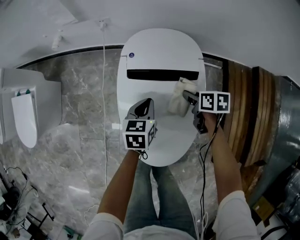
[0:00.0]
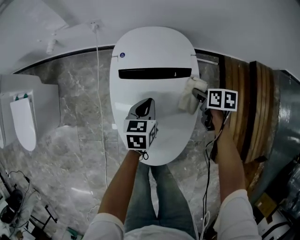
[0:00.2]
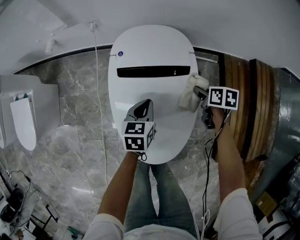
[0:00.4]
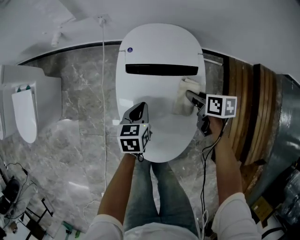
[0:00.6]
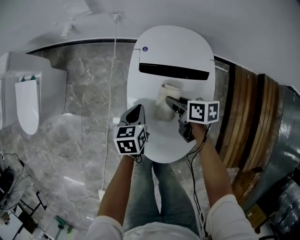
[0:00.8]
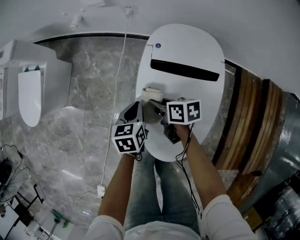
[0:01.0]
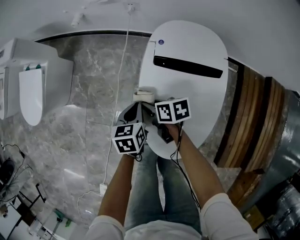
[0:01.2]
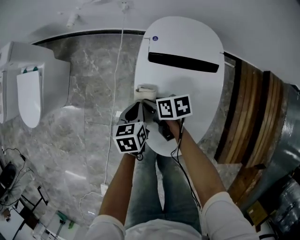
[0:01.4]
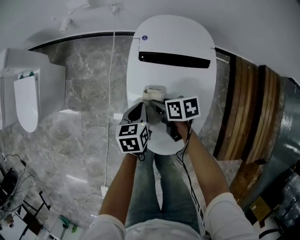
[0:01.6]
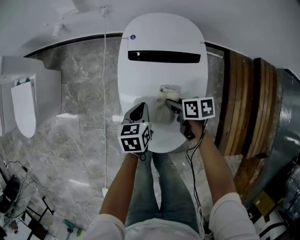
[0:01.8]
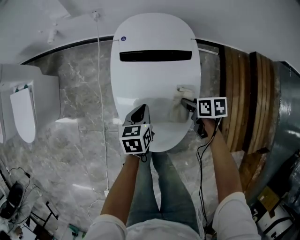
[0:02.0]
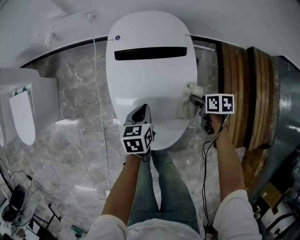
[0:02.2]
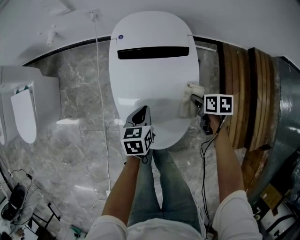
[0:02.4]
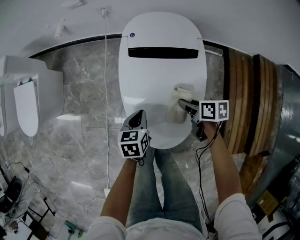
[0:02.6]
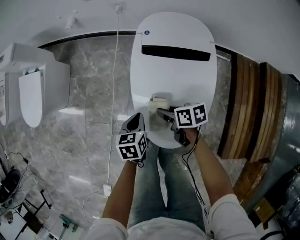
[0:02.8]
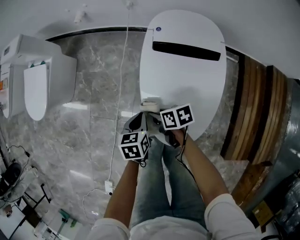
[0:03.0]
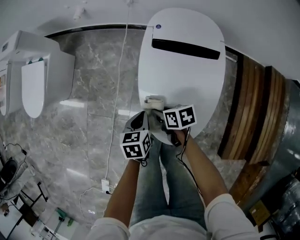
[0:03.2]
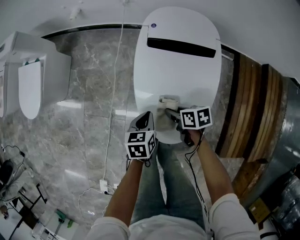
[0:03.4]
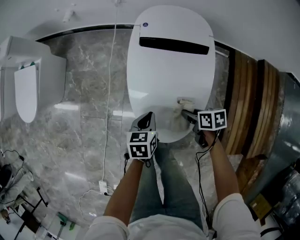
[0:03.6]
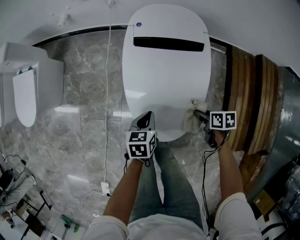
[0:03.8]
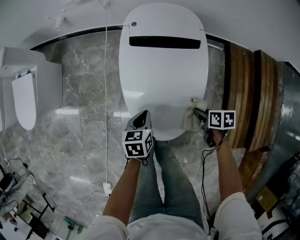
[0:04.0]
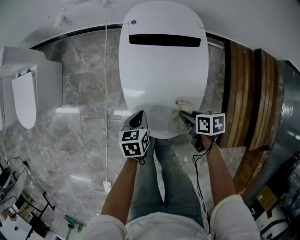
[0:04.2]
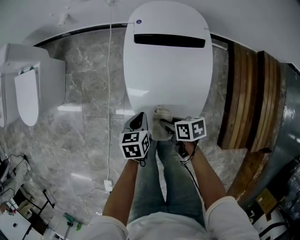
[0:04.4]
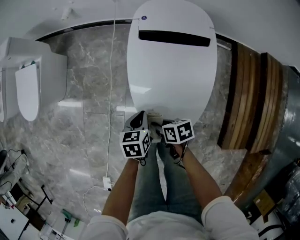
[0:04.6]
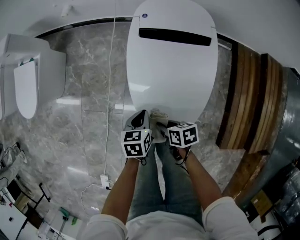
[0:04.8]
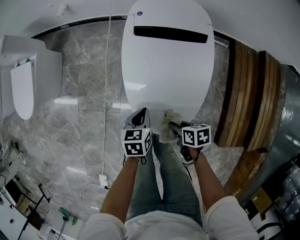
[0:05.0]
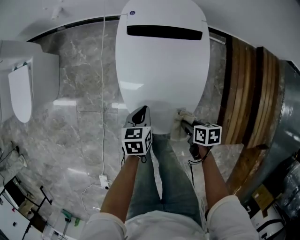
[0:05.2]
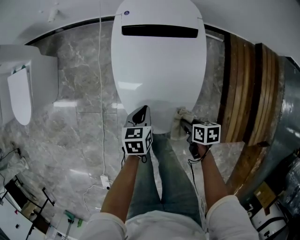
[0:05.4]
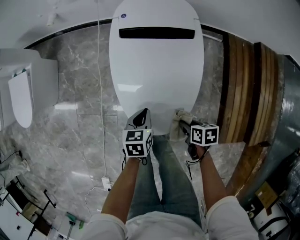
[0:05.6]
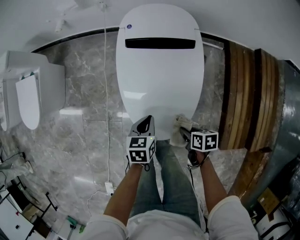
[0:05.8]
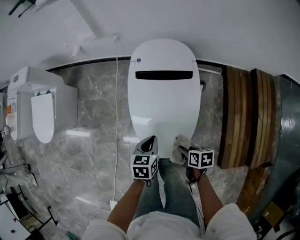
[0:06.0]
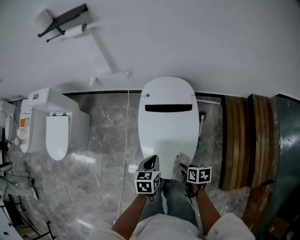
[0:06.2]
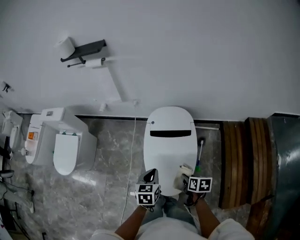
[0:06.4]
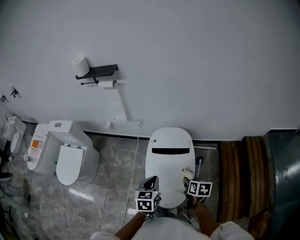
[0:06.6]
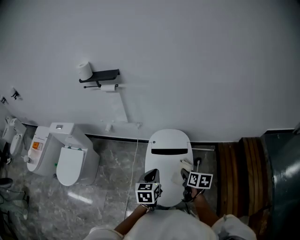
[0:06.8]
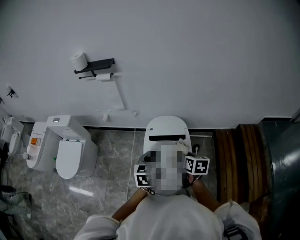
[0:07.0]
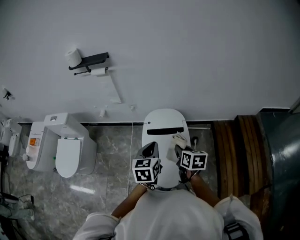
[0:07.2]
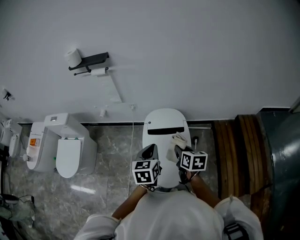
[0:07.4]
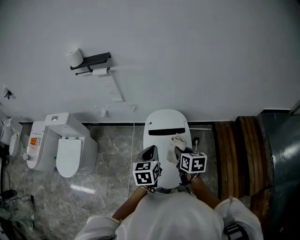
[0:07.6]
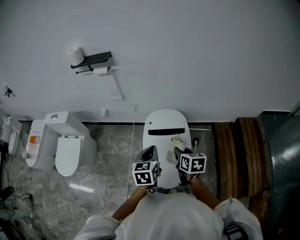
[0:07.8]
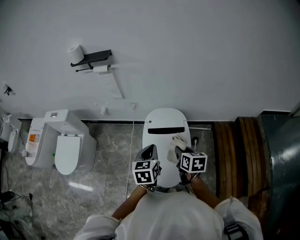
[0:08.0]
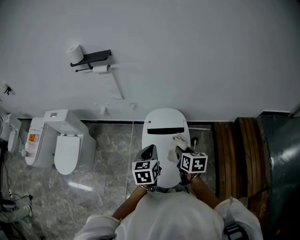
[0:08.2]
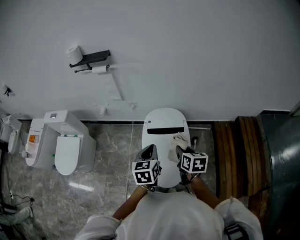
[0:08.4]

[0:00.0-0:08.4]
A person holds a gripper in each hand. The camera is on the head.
0:00.0 to 0:01.4: The left gripper shifts by about 15 cm; the right gripper shifts by some 25 cm, and rotates approximately 20 degrees.
0:01.4 to 0:02.8: Both grippers move backward, roughly 10 cm. The right gripper reaches roughly 30 cm to the right, then returns. Meanwhile the left gripper moves about 10 cm to the right and comes back.
0:02.8 to 0:04.2: The right gripper goes left and right, about 25 cm each way, reversing 2 times. Meanwhile the left gripper moves about 5 cm.
0:04.2 to 0:05.6: The right gripper moves backward, about 10 cm, and travels to the left and back again, approximately 15 cm each way. The left gripper changes place by about 5 cm.
0:05.6 to 0:07.0: The left gripper heads upward, covering about 40 cm, and changes its angle by approximately 30 degrees. Meanwhile the right gripper is displaced upward and forward by approximately 40 cm, and turns by roughly 40 degrees.
0:07.0 to 0:08.4: The grippers make only small movements.

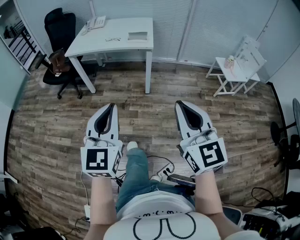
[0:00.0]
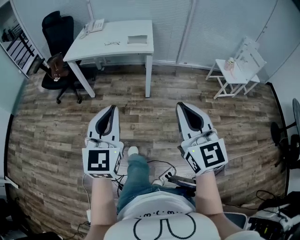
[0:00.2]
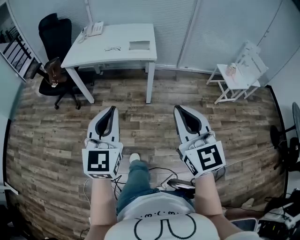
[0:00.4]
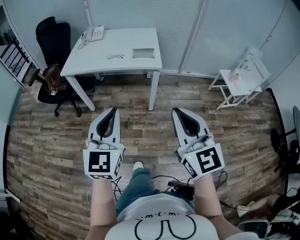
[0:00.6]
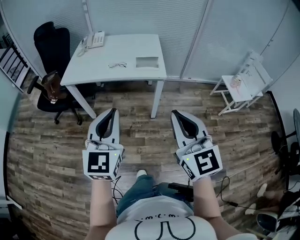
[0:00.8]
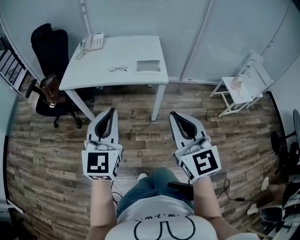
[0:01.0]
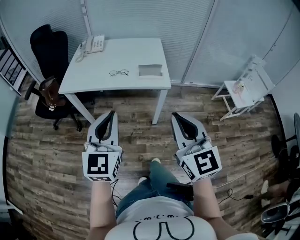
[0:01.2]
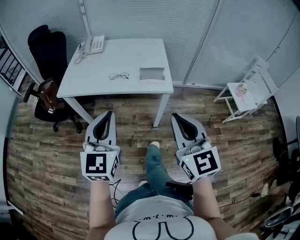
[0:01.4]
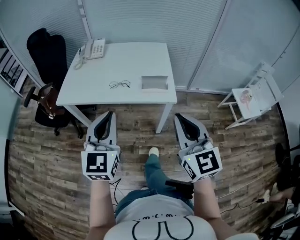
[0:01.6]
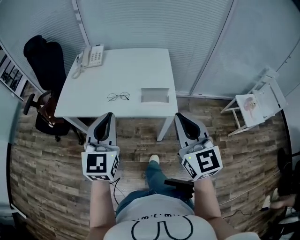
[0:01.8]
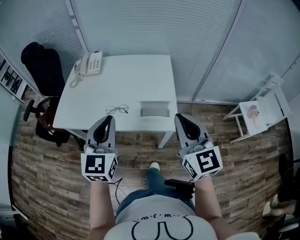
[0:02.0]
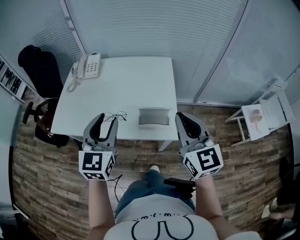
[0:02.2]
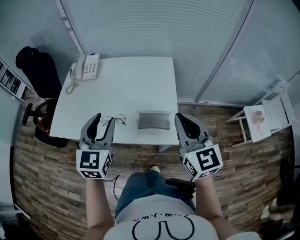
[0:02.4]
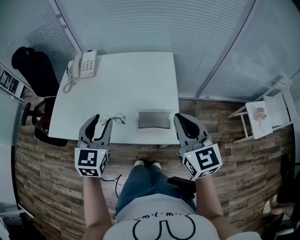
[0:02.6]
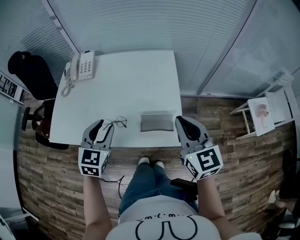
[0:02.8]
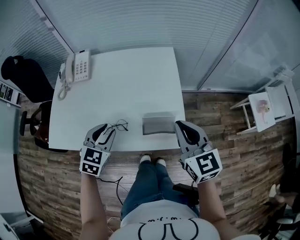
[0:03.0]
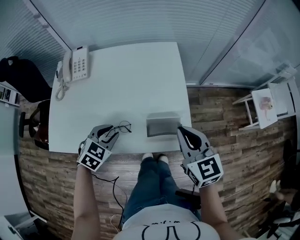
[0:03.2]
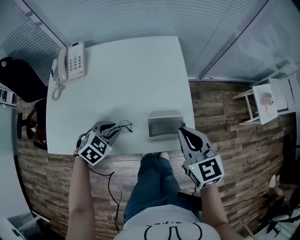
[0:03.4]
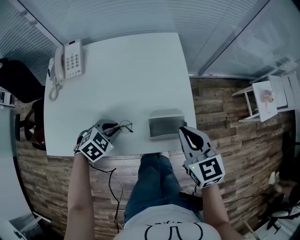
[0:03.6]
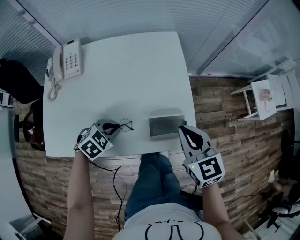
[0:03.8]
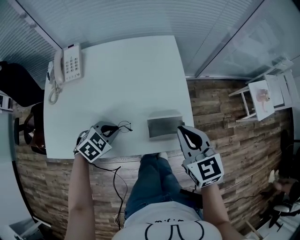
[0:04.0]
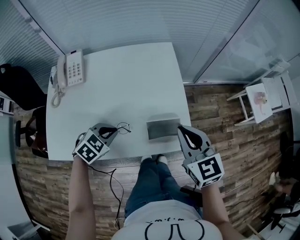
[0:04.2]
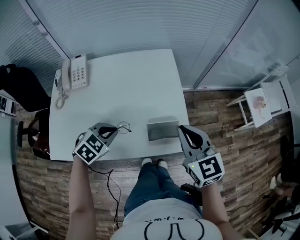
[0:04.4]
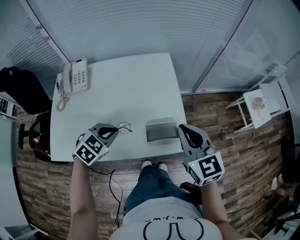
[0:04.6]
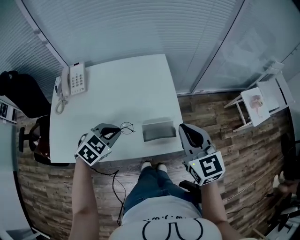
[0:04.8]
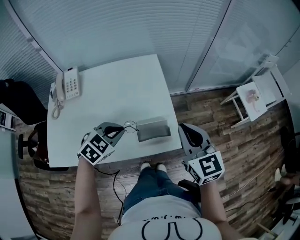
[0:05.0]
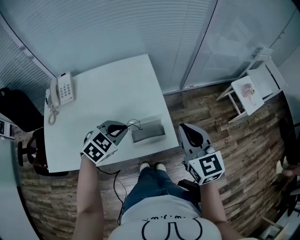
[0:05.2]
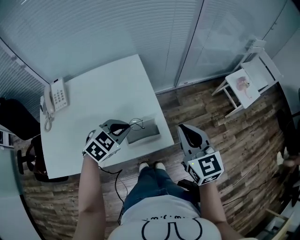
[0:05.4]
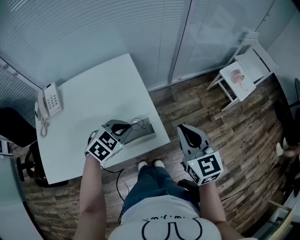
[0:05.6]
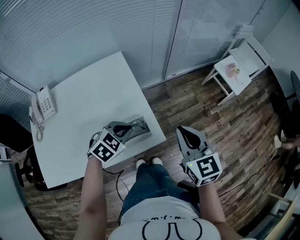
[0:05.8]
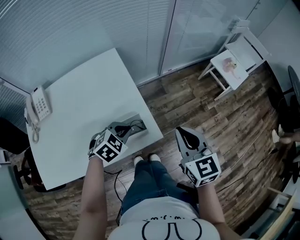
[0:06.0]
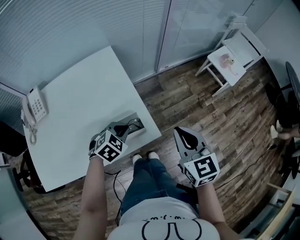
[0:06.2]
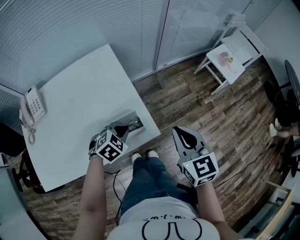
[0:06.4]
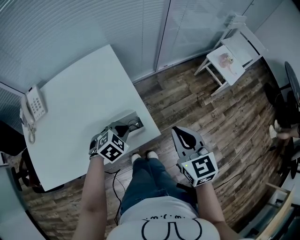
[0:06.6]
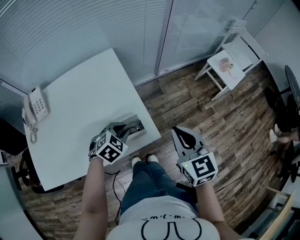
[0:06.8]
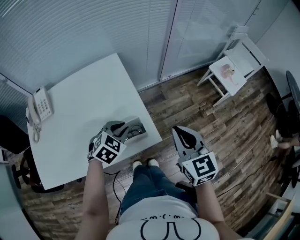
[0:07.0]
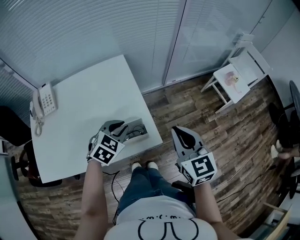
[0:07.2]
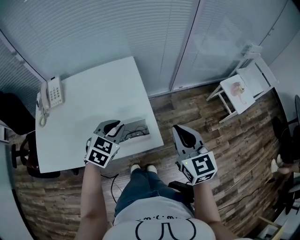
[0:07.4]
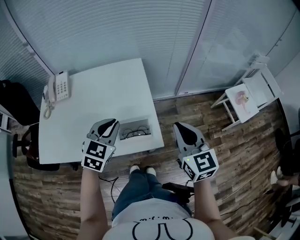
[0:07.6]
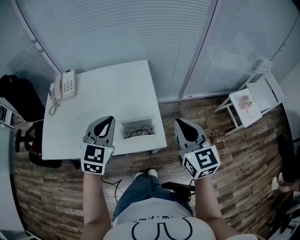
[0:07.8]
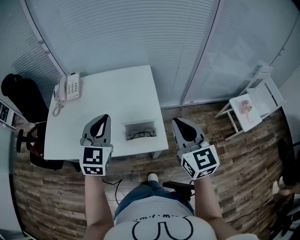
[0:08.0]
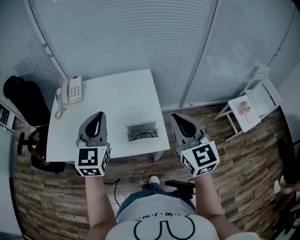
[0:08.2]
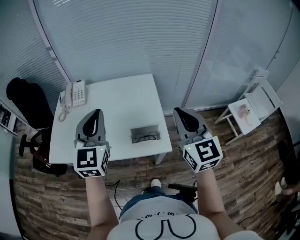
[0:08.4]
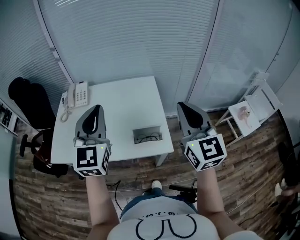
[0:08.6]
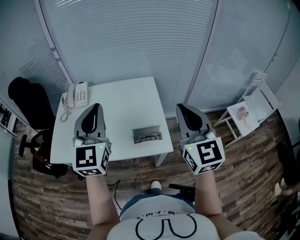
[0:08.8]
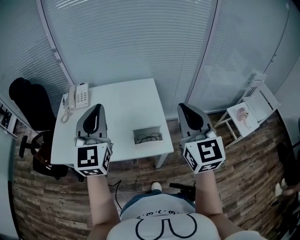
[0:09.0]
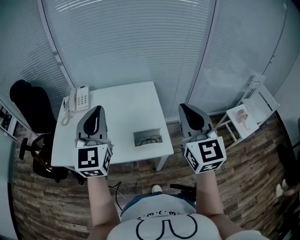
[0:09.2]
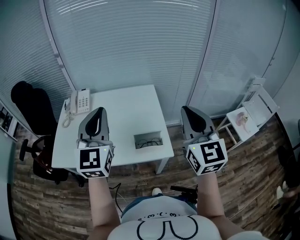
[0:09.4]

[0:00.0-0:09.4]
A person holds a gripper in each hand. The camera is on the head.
0:00.0 to 0:01.6: The pair of grippers is taken forward, approximately 50 cm.
0:01.6 to 0:03.2: The left gripper goes approximately 40 cm forward and downward, tips its fingers downward by some 50 degrees, and opens up, while the right gripper heads forward, covering roughly 30 cm, and changes its angle by about 20 degrees.
0:03.2 to 0:04.8: The two grippers go approximately 5 cm upward. The left gripper closes its fingers.
0:04.8 to 0:06.2: The left gripper goes some 20 cm to the right, downward and forward, while the right gripper is displaced to the right by some 15 cm, and swivels some 20 degrees.
0:06.2 to 0:07.8: The right gripper heads upward, covering about 5 cm, and turns by some 20 degrees. Meanwhile the left gripper goes some 20 cm upward, and tilts its fingers about 40 degrees upward.
0:07.8 to 0:09.4: The left gripper is displaced upward and to the left by roughly 20 cm, and swivels about 30 degrees. Meanwhile the right gripper shifts approximately 15 cm upward.

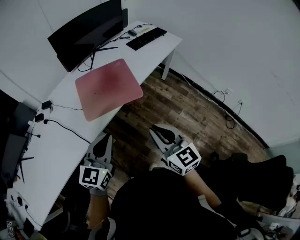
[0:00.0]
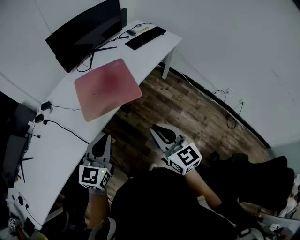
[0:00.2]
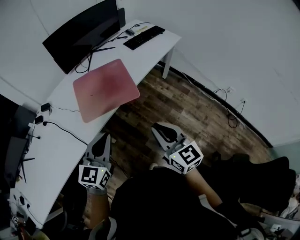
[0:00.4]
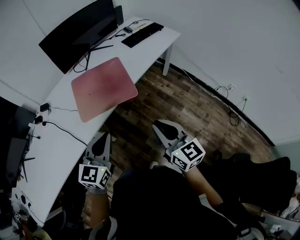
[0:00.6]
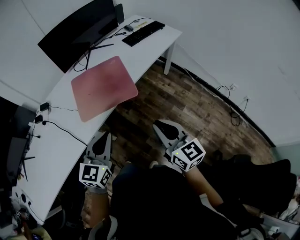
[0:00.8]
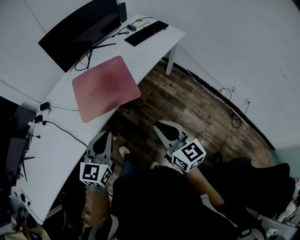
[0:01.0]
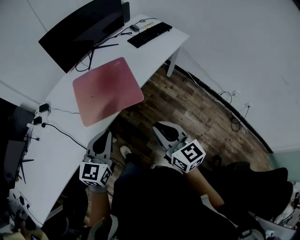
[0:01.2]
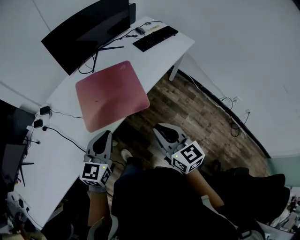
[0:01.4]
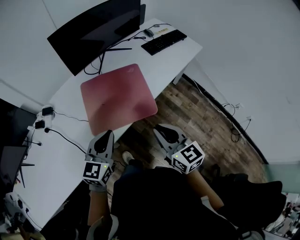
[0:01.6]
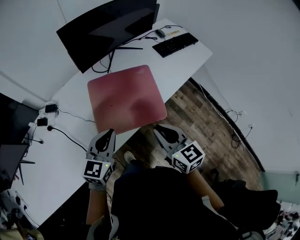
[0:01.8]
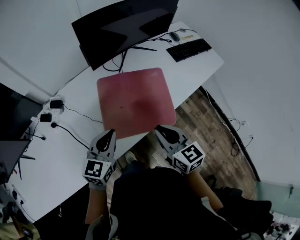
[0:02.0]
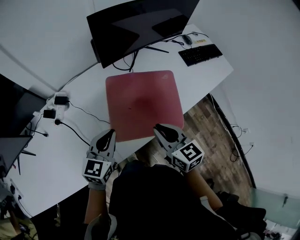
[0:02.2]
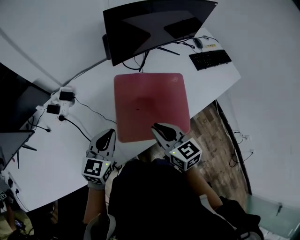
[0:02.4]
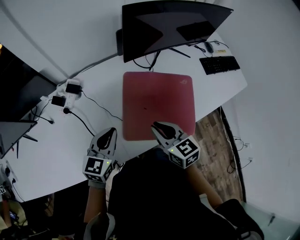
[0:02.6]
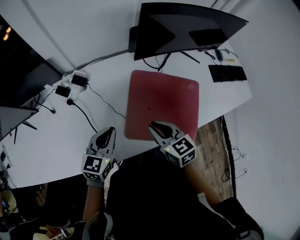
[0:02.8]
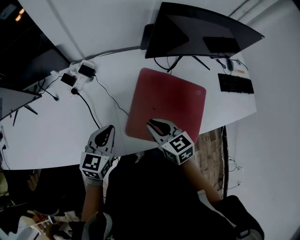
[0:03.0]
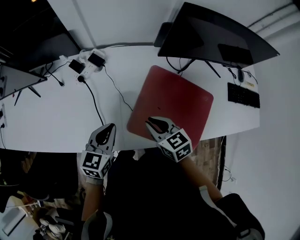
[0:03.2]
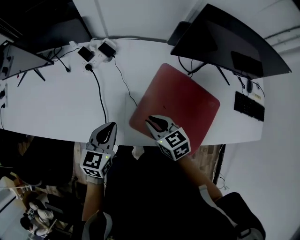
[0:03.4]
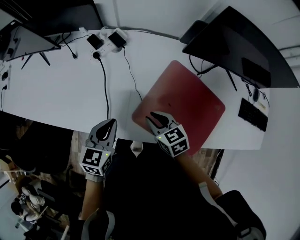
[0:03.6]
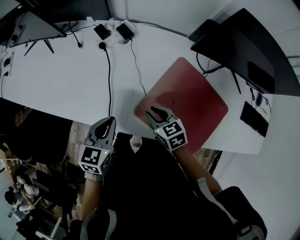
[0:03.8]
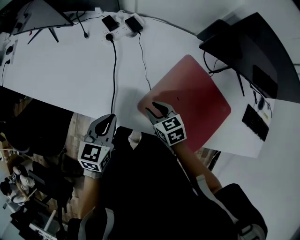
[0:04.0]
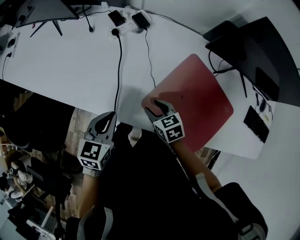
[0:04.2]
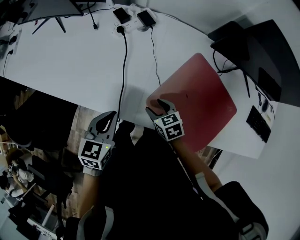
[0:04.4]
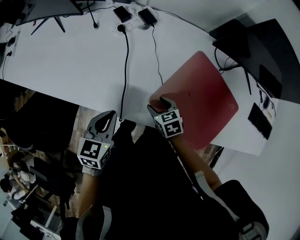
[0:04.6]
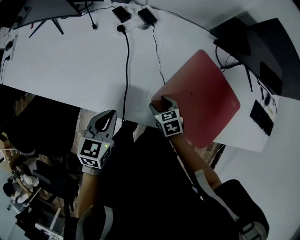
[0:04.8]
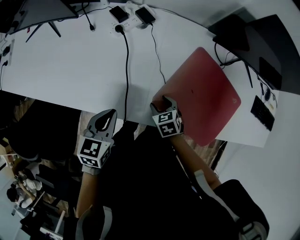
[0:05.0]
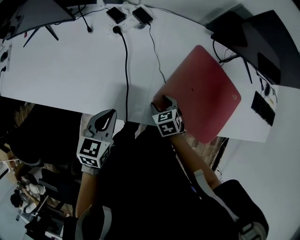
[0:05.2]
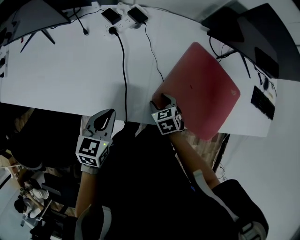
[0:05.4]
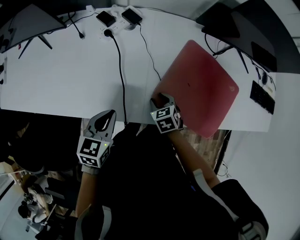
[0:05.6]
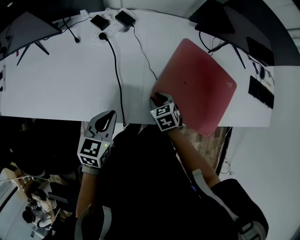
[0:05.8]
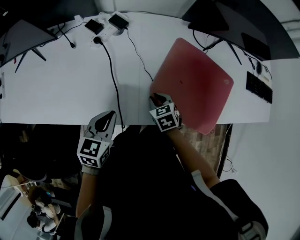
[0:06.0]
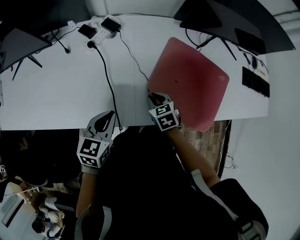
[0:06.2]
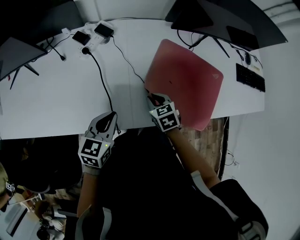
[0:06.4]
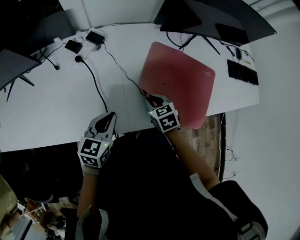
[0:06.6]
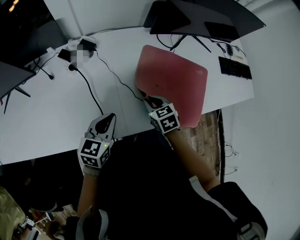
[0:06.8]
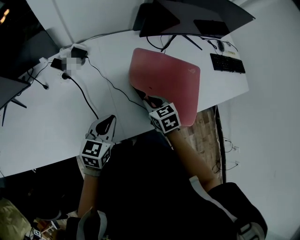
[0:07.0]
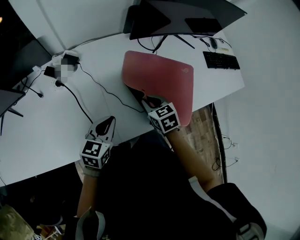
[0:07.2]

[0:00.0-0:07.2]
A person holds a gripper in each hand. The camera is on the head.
0:00.0 to 0:01.4: The two grippers go roughly 15 cm forward.
0:01.4 to 0:02.8: The left gripper changes place by about 30 cm, and changes its angle by some 30 degrees; the right gripper shifts by approximately 40 cm, and rotates approximately 40 degrees.
0:02.8 to 0:04.4: The left gripper ends up some 15 cm from where it was, and swivels roughly 40 degrees. Meanwhile the right gripper moves downward, approximately 20 cm, changes its angle by about 40 degrees, and opens its fingers.
0:04.4 to 0:05.8: The right gripper closes its fingers.
0:05.8 to 0:07.2: The right gripper shifts some 15 cm upward and to the right, and rotates roughly 20 degrees, while the left gripper is displaced to the right and forward by some 15 cm, and swivels roughly 20 degrees.
